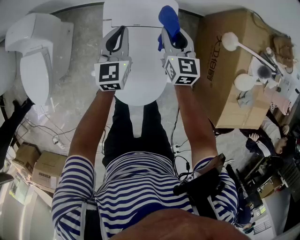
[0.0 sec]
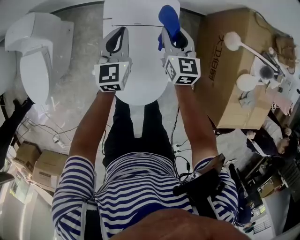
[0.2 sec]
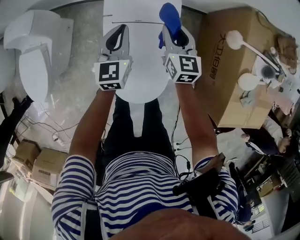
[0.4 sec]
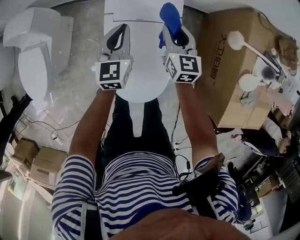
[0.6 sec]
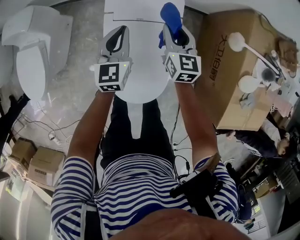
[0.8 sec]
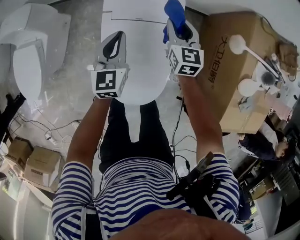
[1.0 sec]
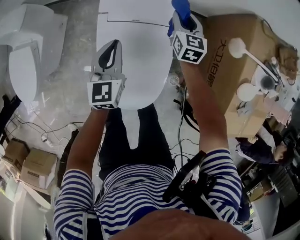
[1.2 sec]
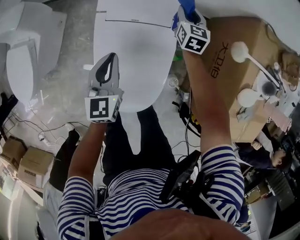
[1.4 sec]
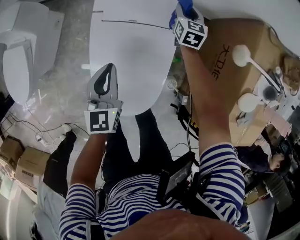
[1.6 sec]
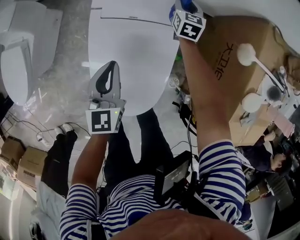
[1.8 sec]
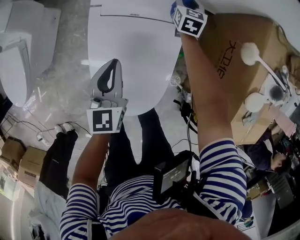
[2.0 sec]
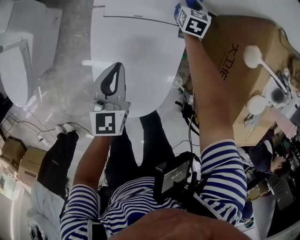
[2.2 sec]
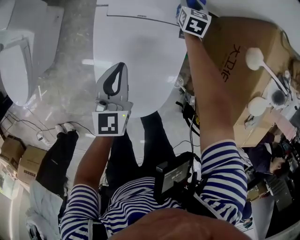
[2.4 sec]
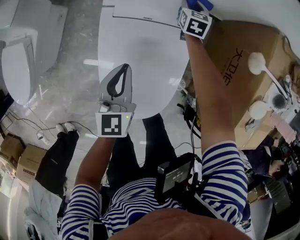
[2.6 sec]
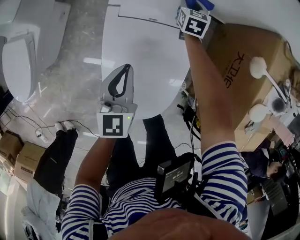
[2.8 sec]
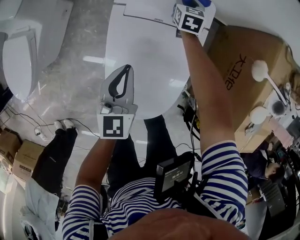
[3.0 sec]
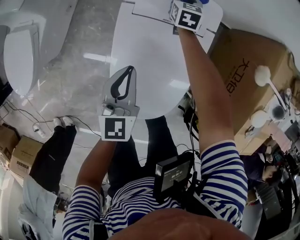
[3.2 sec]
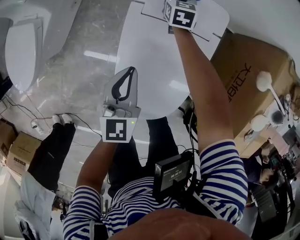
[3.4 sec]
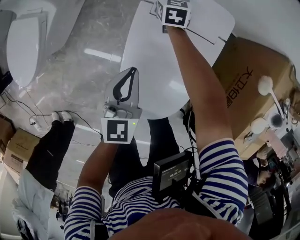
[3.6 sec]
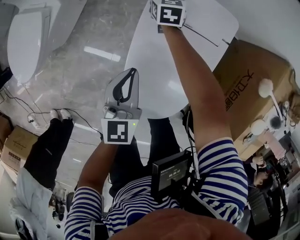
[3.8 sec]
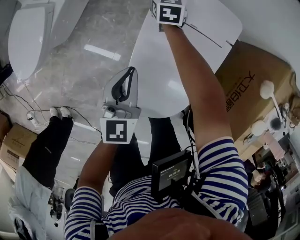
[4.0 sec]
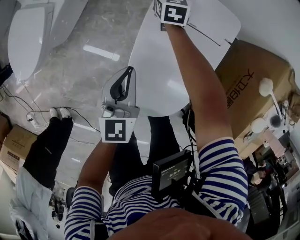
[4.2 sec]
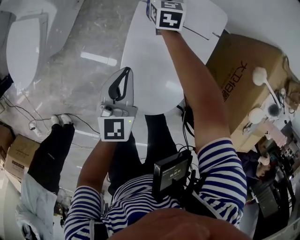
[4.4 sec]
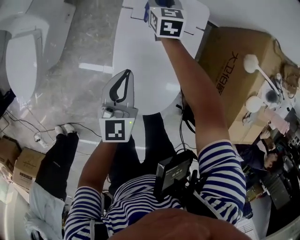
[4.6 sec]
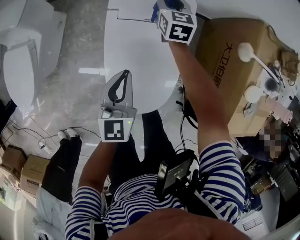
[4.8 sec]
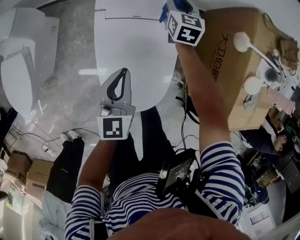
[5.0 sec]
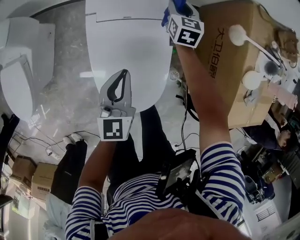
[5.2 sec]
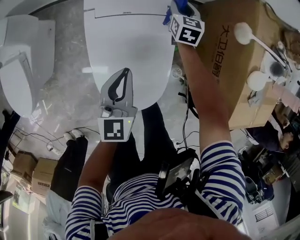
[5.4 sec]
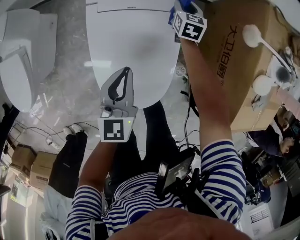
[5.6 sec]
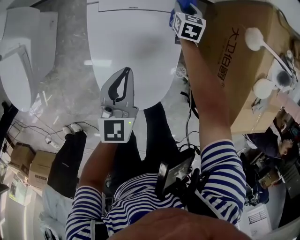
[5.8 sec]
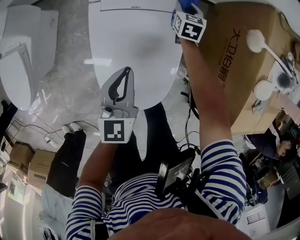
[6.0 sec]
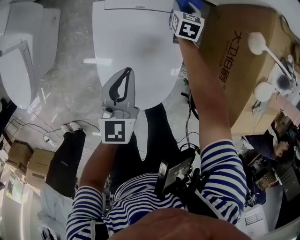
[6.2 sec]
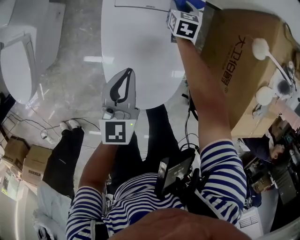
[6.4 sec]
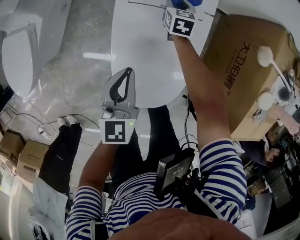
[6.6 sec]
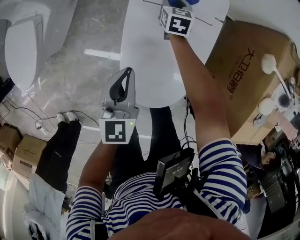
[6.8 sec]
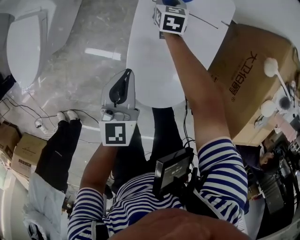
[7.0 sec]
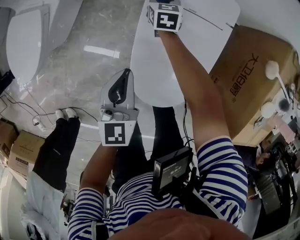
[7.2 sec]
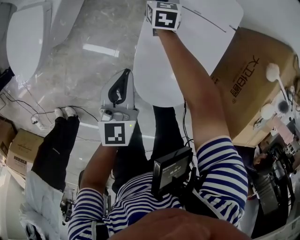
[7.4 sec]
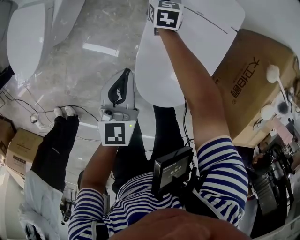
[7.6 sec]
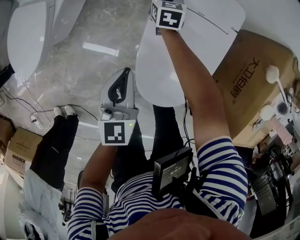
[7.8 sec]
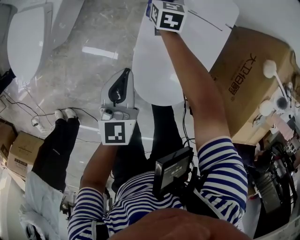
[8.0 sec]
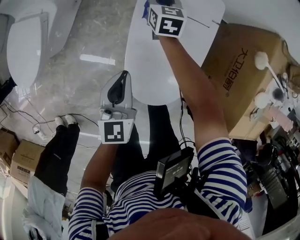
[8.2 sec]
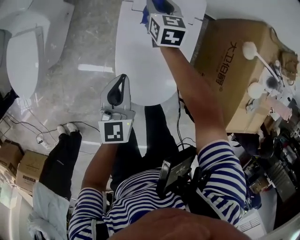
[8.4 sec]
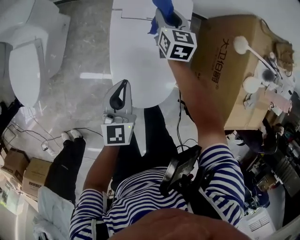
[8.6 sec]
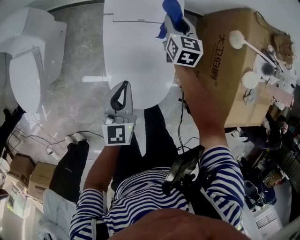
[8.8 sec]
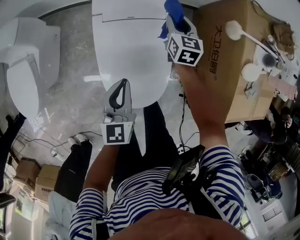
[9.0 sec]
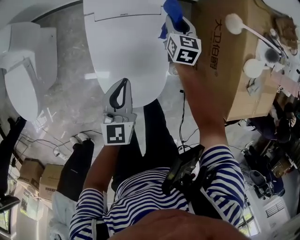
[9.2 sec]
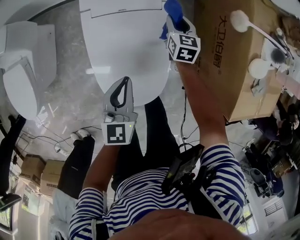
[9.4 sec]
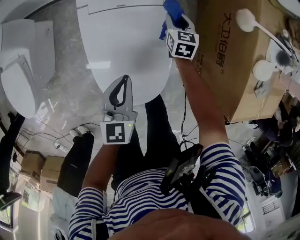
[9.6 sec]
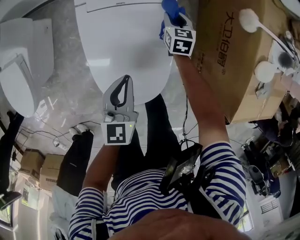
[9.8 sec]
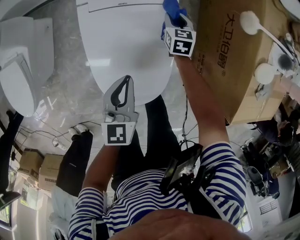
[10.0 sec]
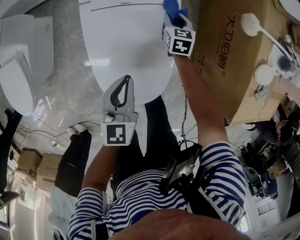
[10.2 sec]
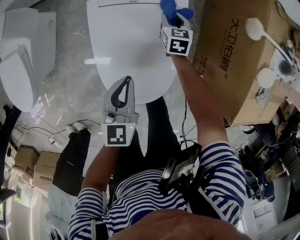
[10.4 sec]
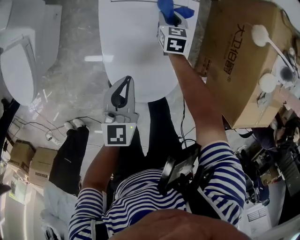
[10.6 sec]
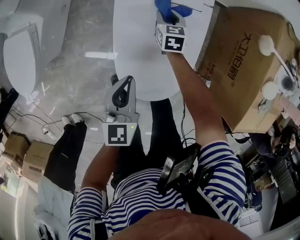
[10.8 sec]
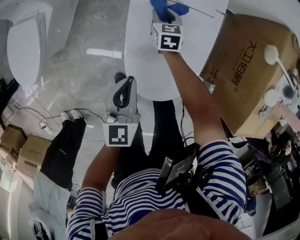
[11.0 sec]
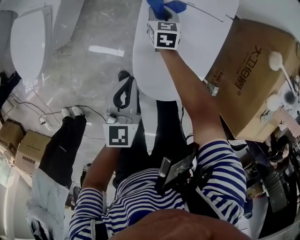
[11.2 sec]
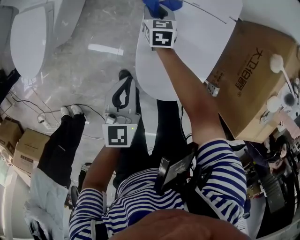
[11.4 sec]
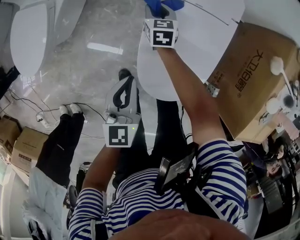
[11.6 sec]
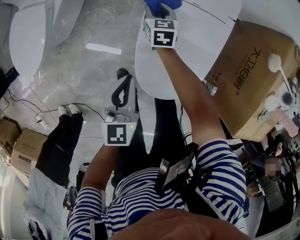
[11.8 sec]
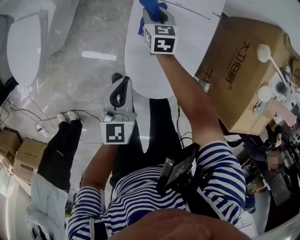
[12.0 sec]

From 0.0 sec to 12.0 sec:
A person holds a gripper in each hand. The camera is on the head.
From 0.0 sec to 1.6 sec: The right gripper travels downward and forward by roughly 25 cm. The left gripper goes some 15 cm backward and downward.
From 1.6 sec to 3.0 sec: The left gripper shifts by roughly 5 cm; the right gripper is displaced to the left and downward by some 15 cm.
From 3.0 sec to 4.4 sec: The left gripper moves to the left, approximately 10 cm. Meanwhile the right gripper shifts some 20 cm to the left.
From 4.4 sec to 6.0 sec: The right gripper heads to the right, covering roughly 30 cm, and rotates about 20 degrees. Meanwhile the left gripper travels to the right by about 15 cm.
From 6.0 sec to 7.6 sec: The right gripper travels to the left by roughly 40 cm, and changes its angle by some 20 degrees; the left gripper moves to the left, roughly 20 cm.
From 7.6 sec to 9.0 sec: The right gripper goes approximately 40 cm to the right and upward, and rotates some 20 degrees; the left gripper shifts about 20 cm to the right.
From 9.0 sec to 10.4 sec: The left gripper travels downward by roughly 5 cm. The right gripper moves downward, roughly 20 cm.
From 10.4 sec to 12.0 sec: The left gripper goes roughly 15 cm to the left. Meanwhile the right gripper is displaced to the left by roughly 25 cm.

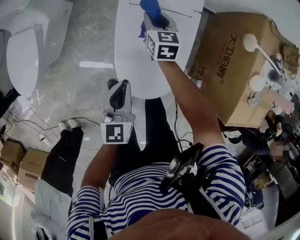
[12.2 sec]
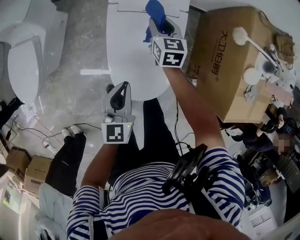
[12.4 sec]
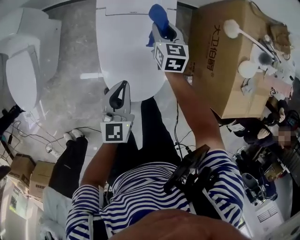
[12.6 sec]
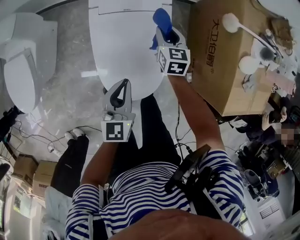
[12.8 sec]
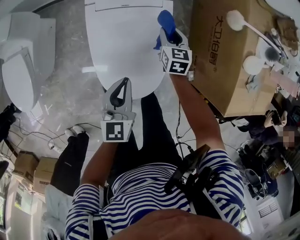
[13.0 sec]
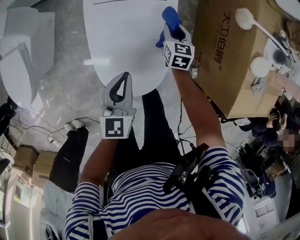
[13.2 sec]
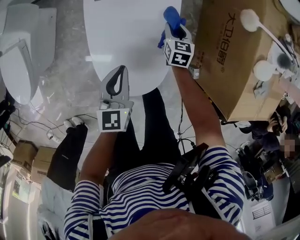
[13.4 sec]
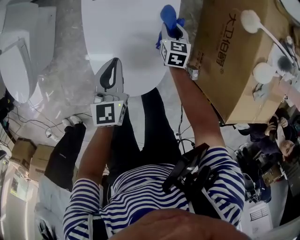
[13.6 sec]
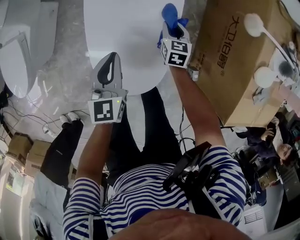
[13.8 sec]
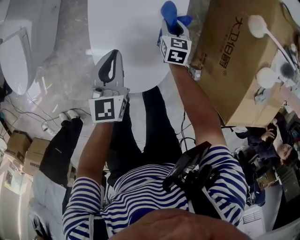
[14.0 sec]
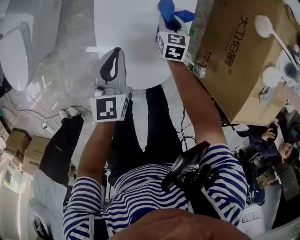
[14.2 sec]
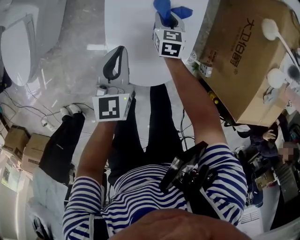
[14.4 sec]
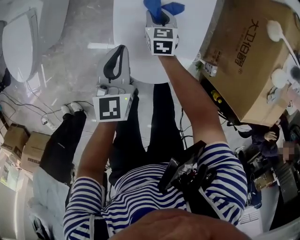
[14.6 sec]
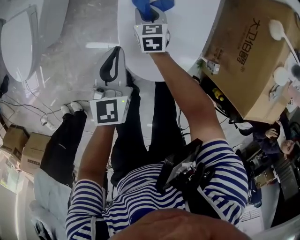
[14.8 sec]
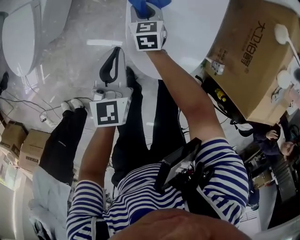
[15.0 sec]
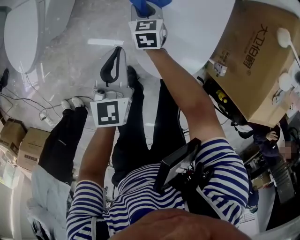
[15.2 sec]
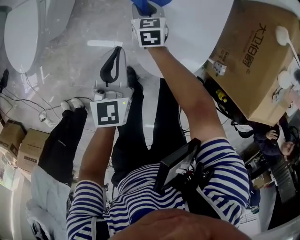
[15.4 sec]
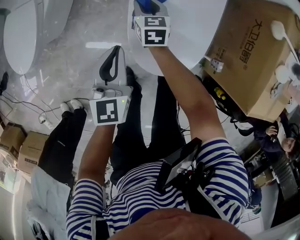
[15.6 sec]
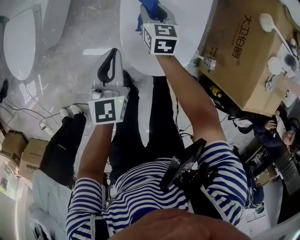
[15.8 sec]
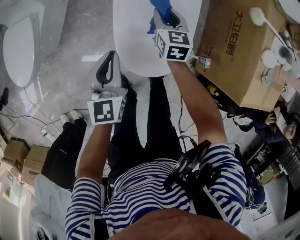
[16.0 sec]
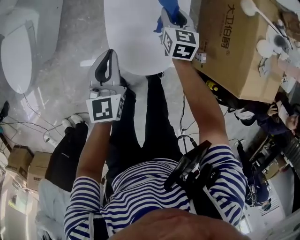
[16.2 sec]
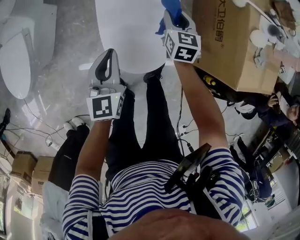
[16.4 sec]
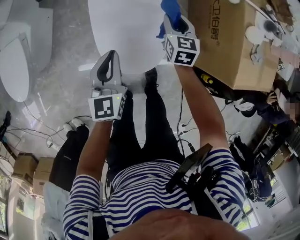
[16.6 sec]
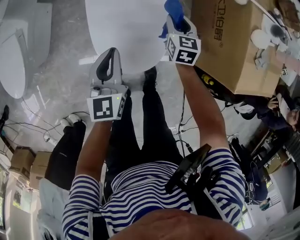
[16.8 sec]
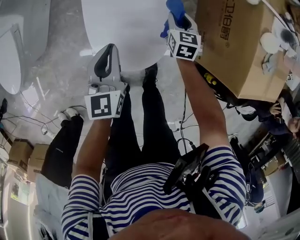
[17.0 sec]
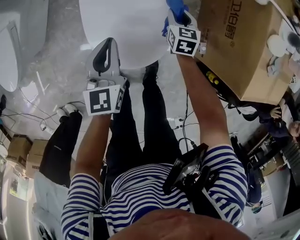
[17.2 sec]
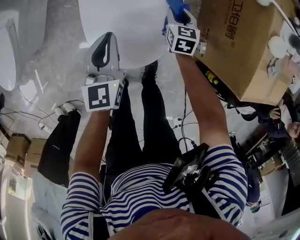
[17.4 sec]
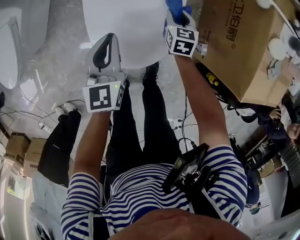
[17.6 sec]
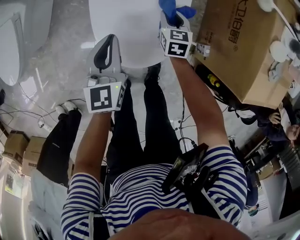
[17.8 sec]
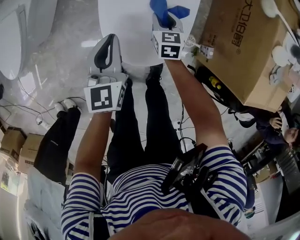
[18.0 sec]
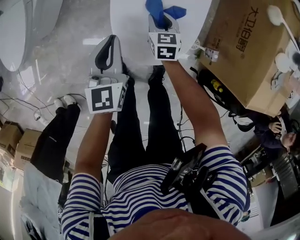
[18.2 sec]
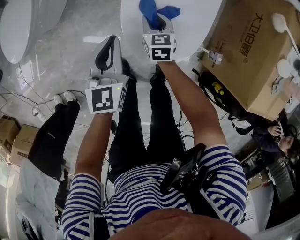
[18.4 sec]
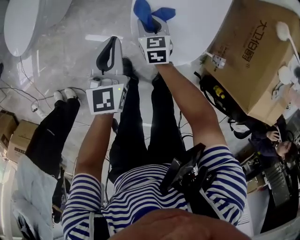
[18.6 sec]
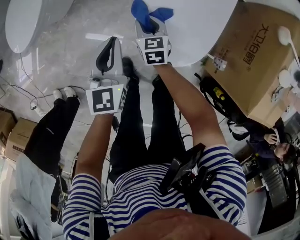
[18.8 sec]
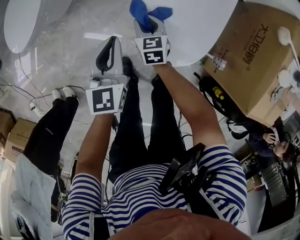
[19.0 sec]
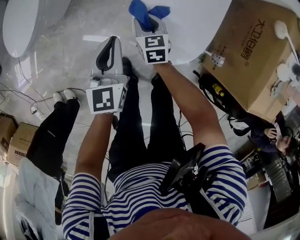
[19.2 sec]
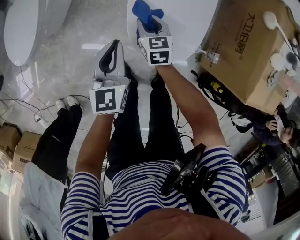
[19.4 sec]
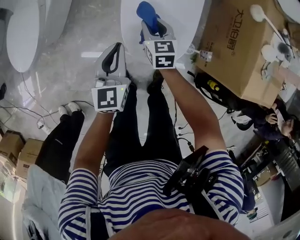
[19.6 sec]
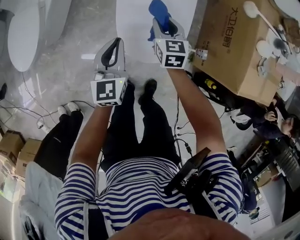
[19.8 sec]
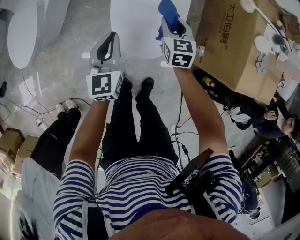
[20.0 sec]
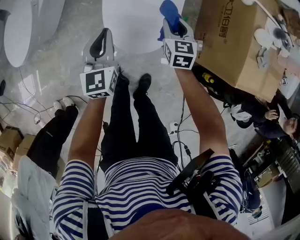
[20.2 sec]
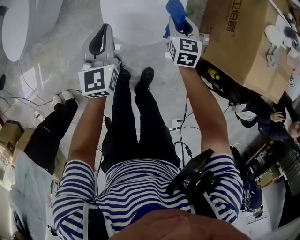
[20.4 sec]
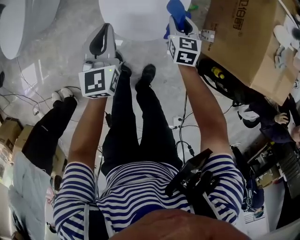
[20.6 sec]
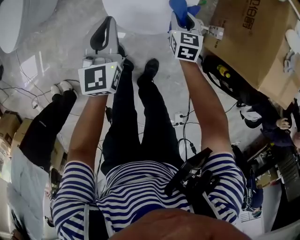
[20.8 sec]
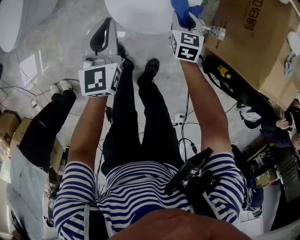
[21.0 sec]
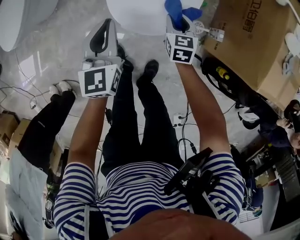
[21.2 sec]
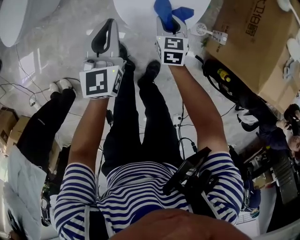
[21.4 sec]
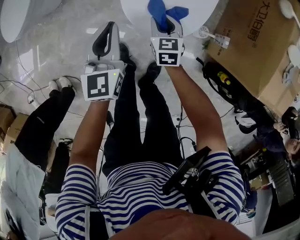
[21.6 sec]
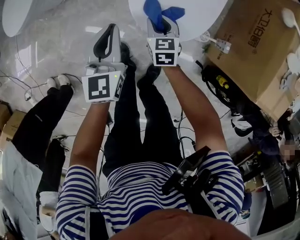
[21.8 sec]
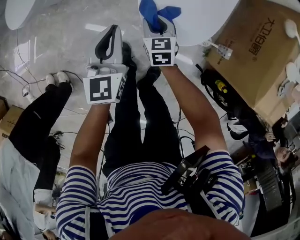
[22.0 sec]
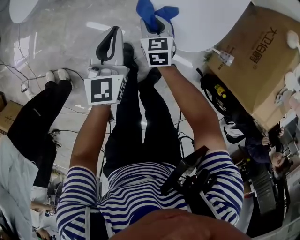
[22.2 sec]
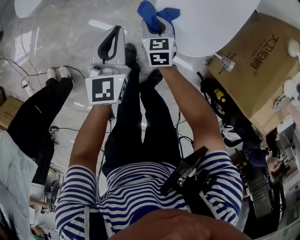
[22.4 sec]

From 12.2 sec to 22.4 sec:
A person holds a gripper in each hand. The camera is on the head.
From 12.2 sec to 13.6 sec: The right gripper moves to the right and downward, roughly 30 cm. Meanwhile the left gripper is displaced to the right, forward and downward by roughly 15 cm.
From 13.6 sec to 15.2 sec: The left gripper heads to the left, covering roughly 20 cm. The right gripper heads to the left, covering about 35 cm.
From 15.2 sec to 16.6 sec: The right gripper goes approximately 35 cm to the right and upward, and changes its angle by approximately 20 degrees. Meanwhile the left gripper goes about 15 cm to the right and upward.
From 16.6 sec to 18.0 sec: The right gripper goes some 20 cm downward and to the left, while the left gripper goes some 10 cm downward.
From 18.0 sec to 19.4 sec: The left gripper is displaced to the left by approximately 10 cm. Meanwhile the right gripper shifts about 15 cm to the left.
From 19.4 sec to 21.0 sec: The left gripper moves to the right, backward and downward, about 15 cm. The right gripper moves to the right and backward, about 25 cm.
From 21.0 sec to 22.4 sec: The left gripper shifts some 15 cm to the left; the right gripper goes roughly 30 cm to the left, and swivels roughly 20 degrees.

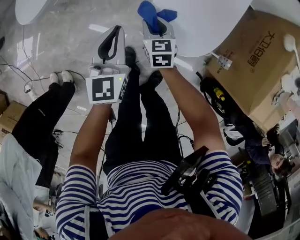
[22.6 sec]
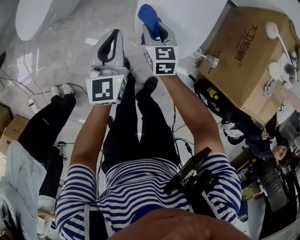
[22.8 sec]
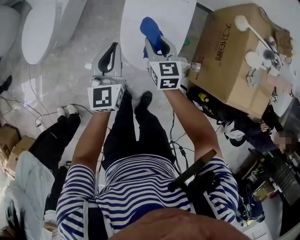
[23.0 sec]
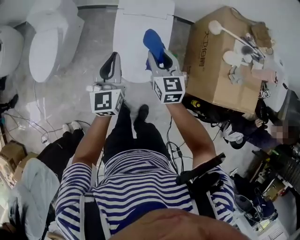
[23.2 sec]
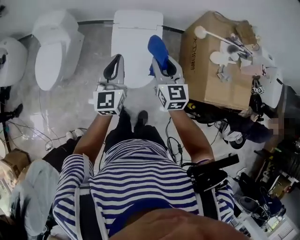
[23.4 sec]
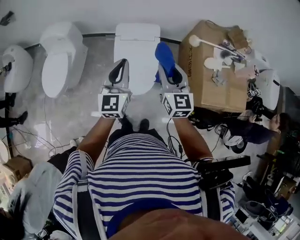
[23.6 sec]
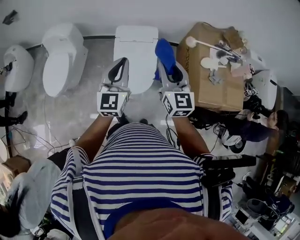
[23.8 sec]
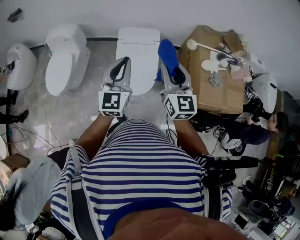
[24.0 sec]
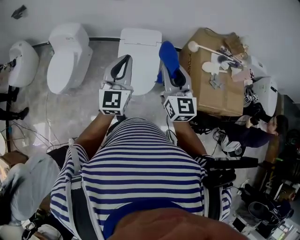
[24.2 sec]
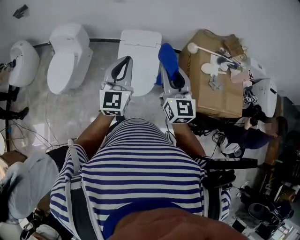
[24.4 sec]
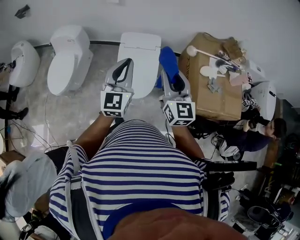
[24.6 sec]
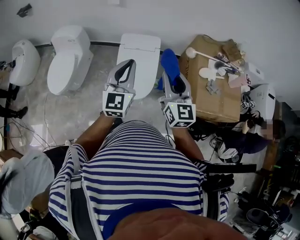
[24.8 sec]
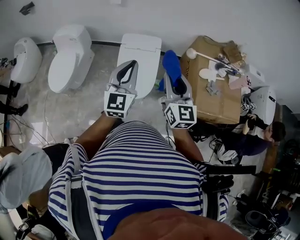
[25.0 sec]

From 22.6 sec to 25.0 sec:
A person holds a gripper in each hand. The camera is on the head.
From 22.6 sec to 23.8 sec: Both grippers move upward, approximately 60 cm. The right gripper tips its fingers upward by approximately 40 degrees, while the left gripper changes its angle by roughly 30 degrees.
From 23.8 sec to 25.0 sec: Both grippers travel together backward, roughly 5 cm.
